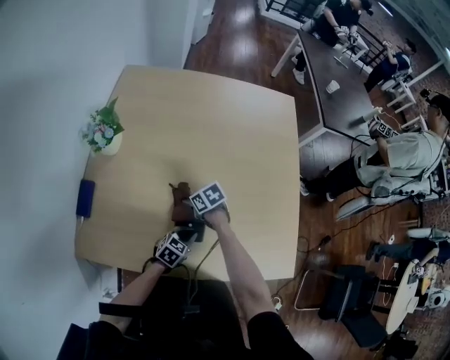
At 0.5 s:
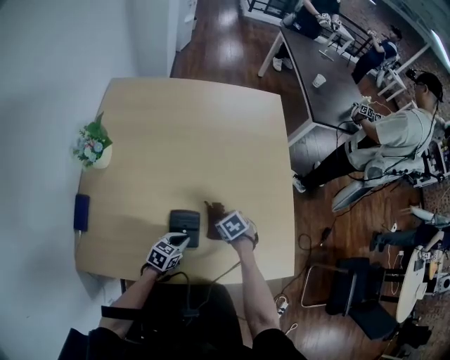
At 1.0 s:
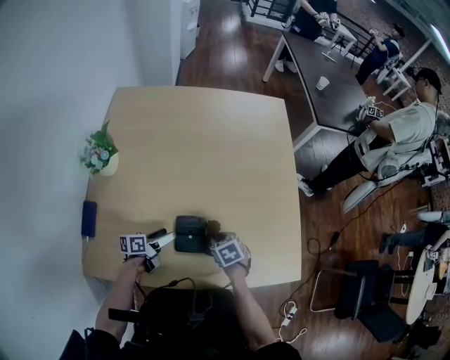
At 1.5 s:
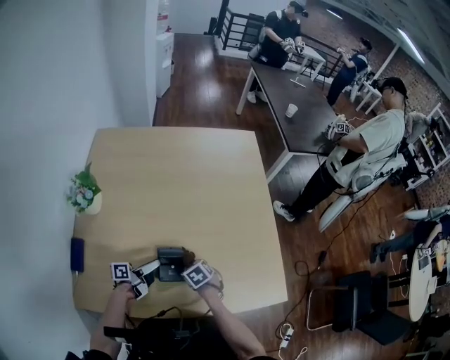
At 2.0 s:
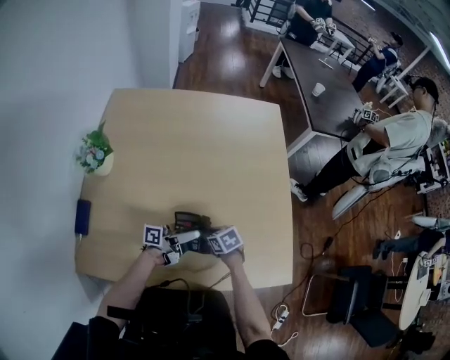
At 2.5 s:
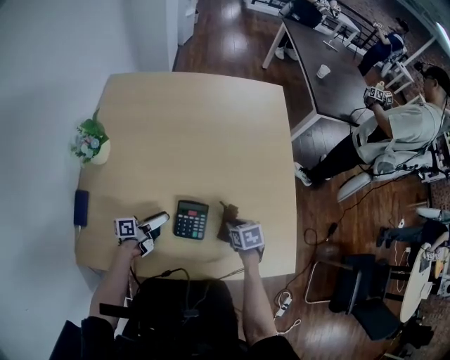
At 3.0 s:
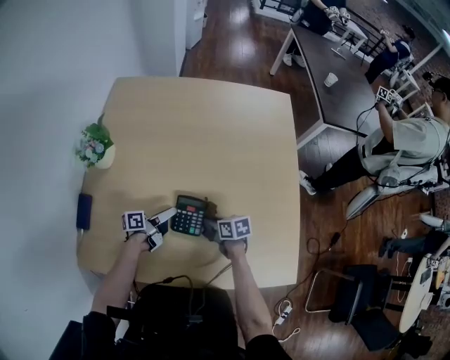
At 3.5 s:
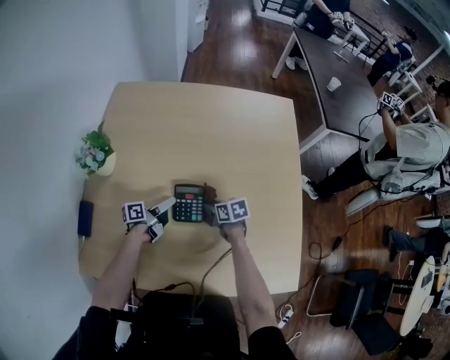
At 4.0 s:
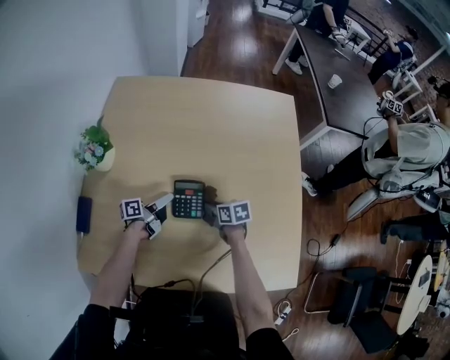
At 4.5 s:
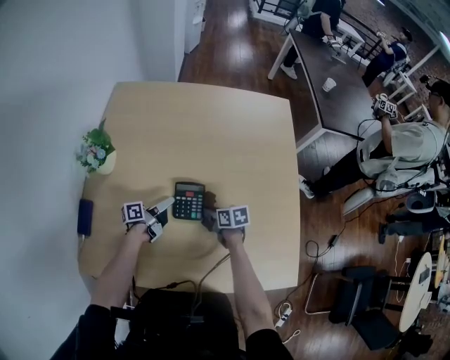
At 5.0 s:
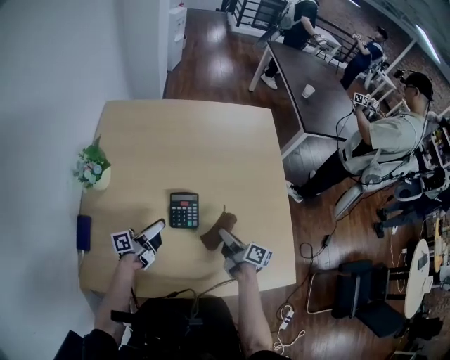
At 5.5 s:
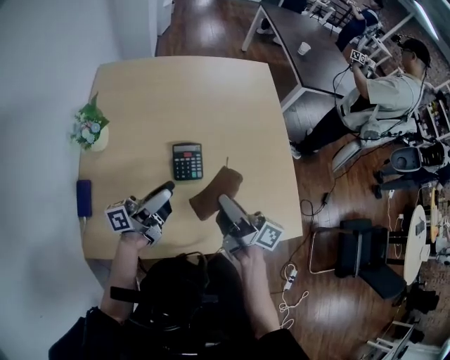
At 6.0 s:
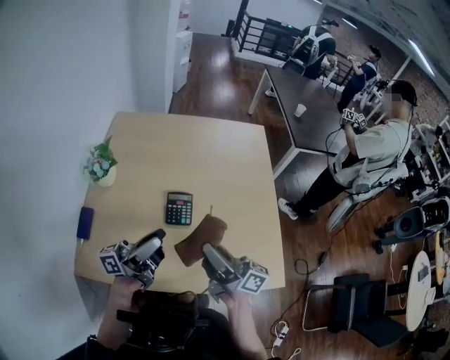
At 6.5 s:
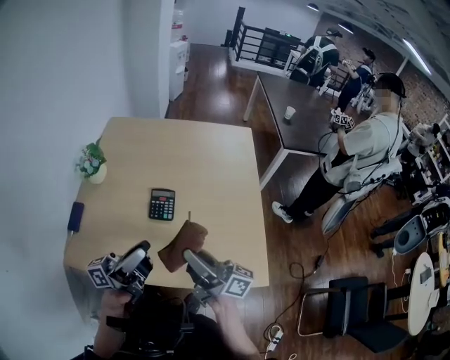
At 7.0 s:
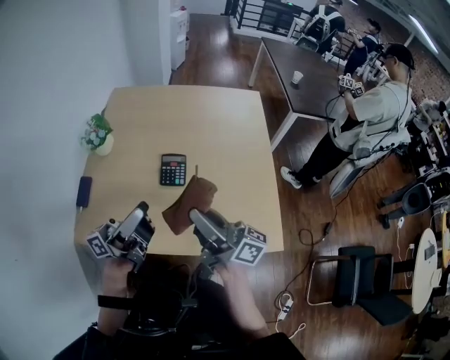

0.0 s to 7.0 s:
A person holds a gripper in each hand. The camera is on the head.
0.0 to 2.0 s: The right gripper ends up about 15 cm from where it was. Meanwhile the left gripper shifts some 10 cm upward, angles its fingers upward, by about 60 degrees, and opens its fingers.
2.0 to 3.5 s: The left gripper shifts by about 20 cm, and turns by approximately 30 degrees; the right gripper shifts by about 15 cm.
3.5 to 5.0 s: The left gripper travels upward and backward by roughly 15 cm. The right gripper heads upward, backward and to the right, covering roughly 15 cm, and points its fingers roughly 30 degrees further upward.
5.0 to 7.0 s: Both grippers travel together upward and backward, roughly 30 cm. The left gripper swivels approximately 30 degrees, and closes its fingers. The right gripper angles its fingers upward, by approximately 40 degrees.

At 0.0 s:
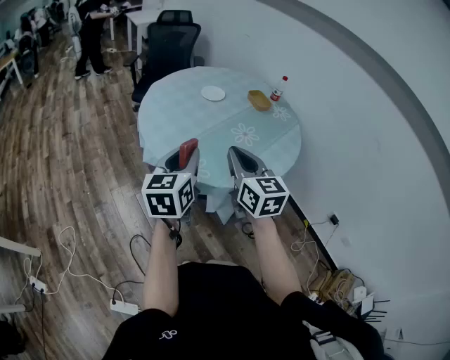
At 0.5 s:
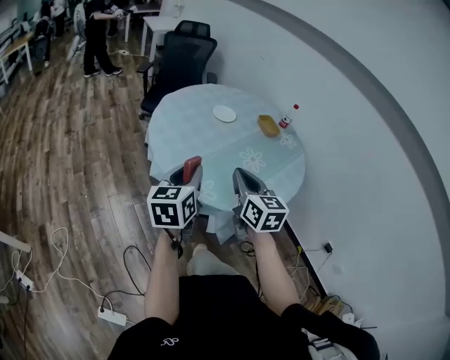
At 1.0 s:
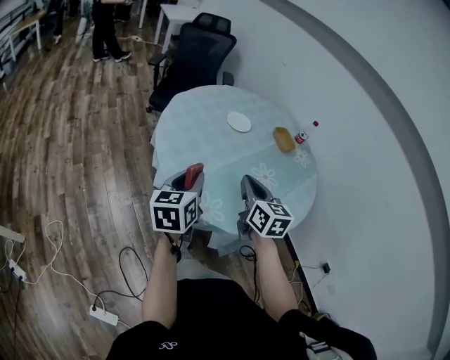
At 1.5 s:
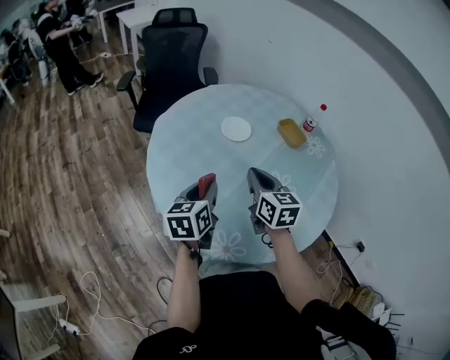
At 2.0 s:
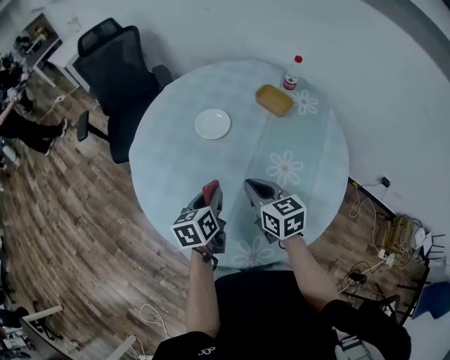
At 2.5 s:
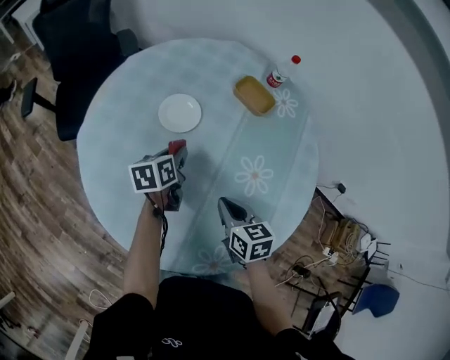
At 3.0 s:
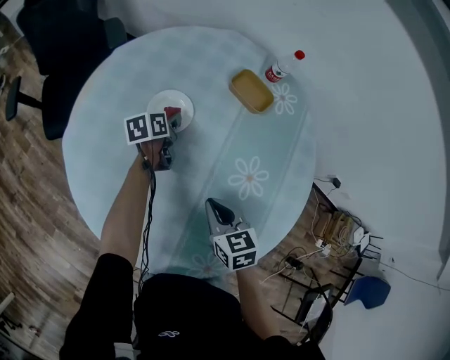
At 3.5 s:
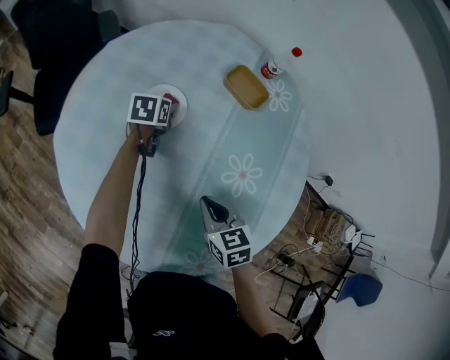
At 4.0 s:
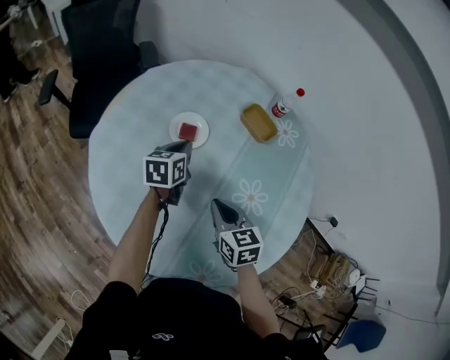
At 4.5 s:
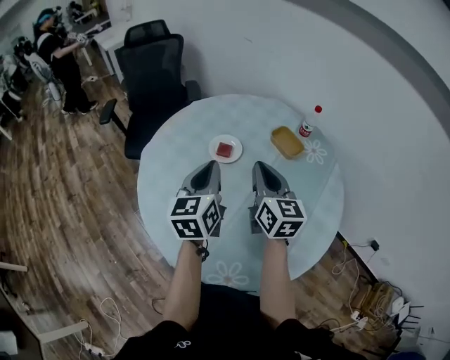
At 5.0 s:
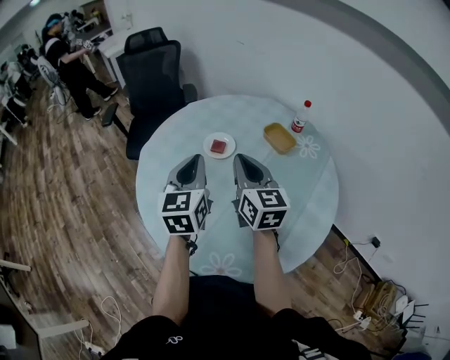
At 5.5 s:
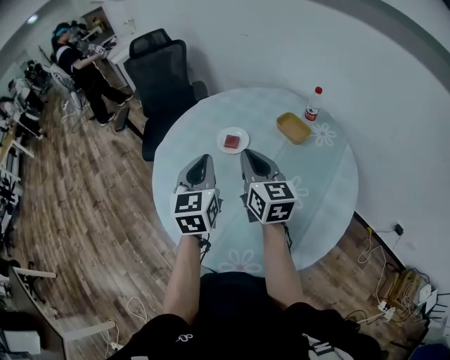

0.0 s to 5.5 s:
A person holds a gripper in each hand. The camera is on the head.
0.0 to 2.0 s: Both grippers move forward and downward, approximately 40 cm. The left gripper swivels approximately 40 degrees; the right gripper turns by about 30 degrees.
2.0 to 3.5 s: The left gripper heads forward and downward, covering some 40 cm, swivels about 30 degrees, and opens. The right gripper moves downward and forward, about 10 cm, and changes its angle by about 20 degrees.
3.5 to 5.5 s: Both grippers move upward, approximately 25 cm. The right gripper tilts its fingers roughly 40 degrees upward; the left gripper tips its fingers upward by some 40 degrees, and closes its fingers.

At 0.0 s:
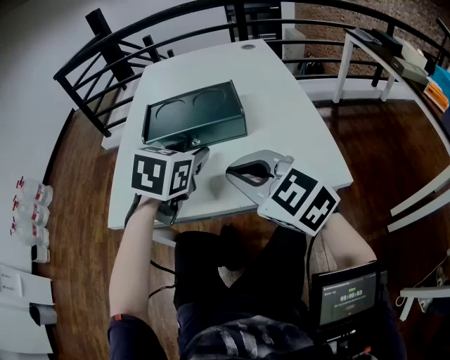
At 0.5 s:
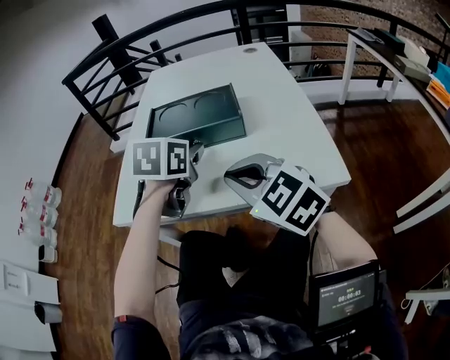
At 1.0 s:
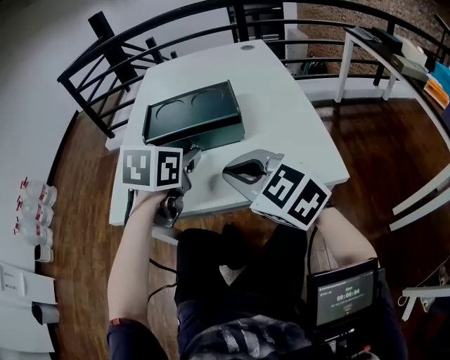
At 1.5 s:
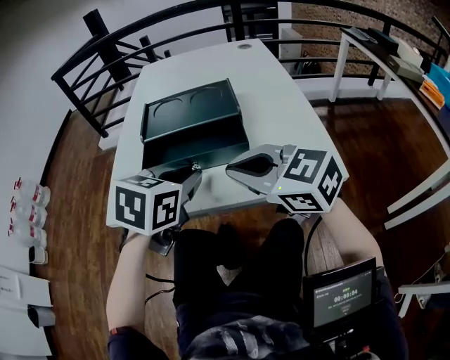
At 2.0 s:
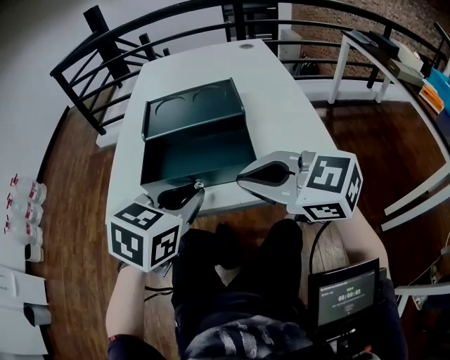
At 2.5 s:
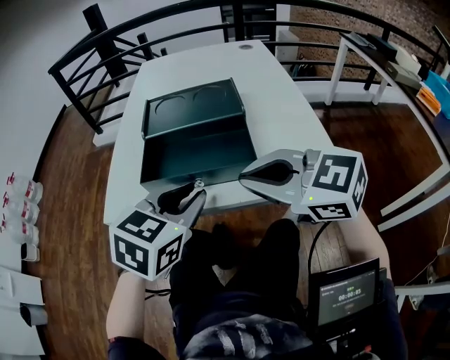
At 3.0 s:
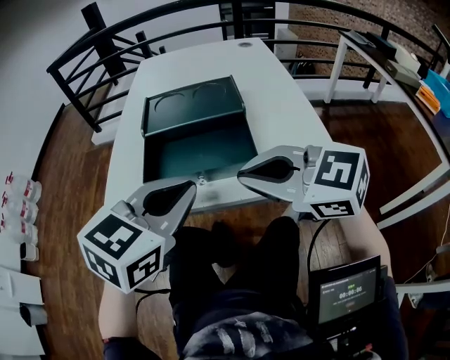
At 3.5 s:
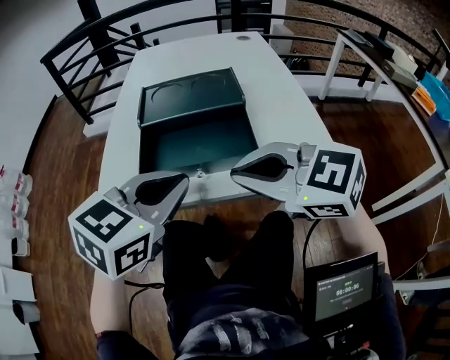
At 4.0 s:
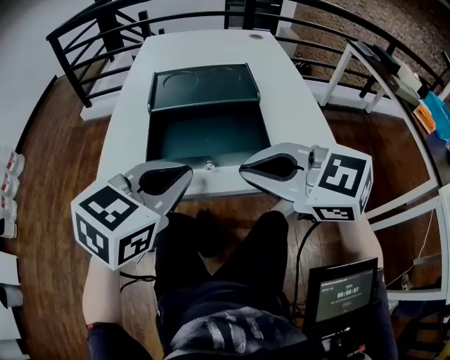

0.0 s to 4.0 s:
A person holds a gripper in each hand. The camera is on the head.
0.0 to 2.0 s: The left gripper shifts about 10 cm backward, and closes its fingers.
2.0 to 4.0 s: The grippers move only a little.

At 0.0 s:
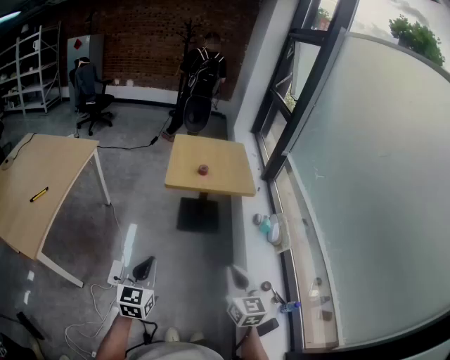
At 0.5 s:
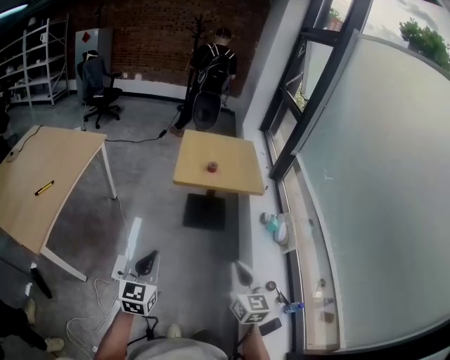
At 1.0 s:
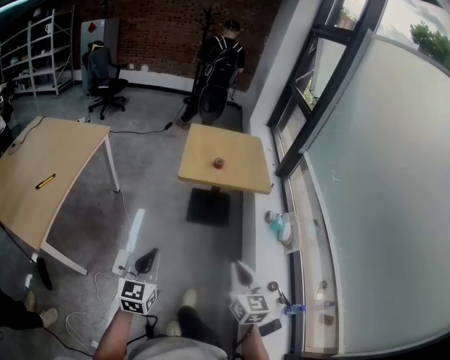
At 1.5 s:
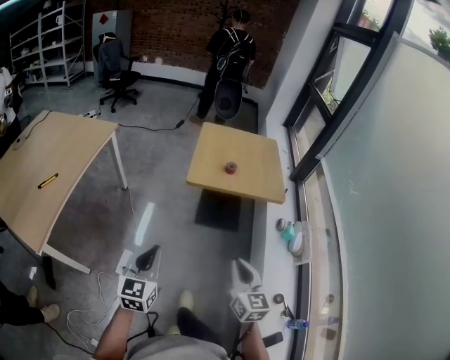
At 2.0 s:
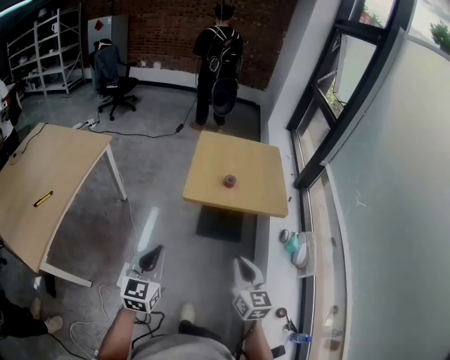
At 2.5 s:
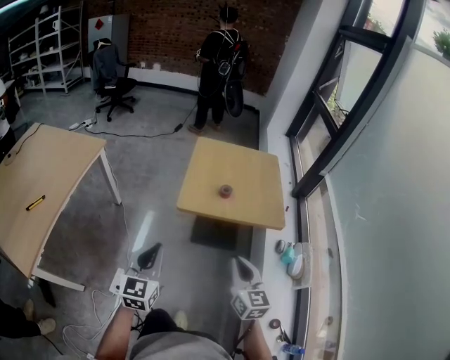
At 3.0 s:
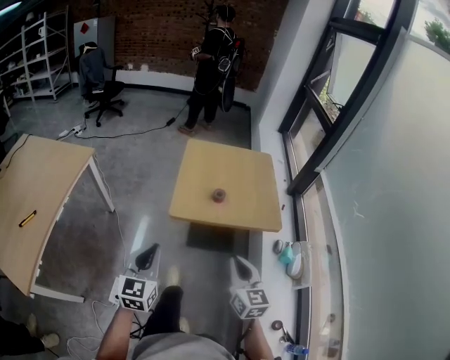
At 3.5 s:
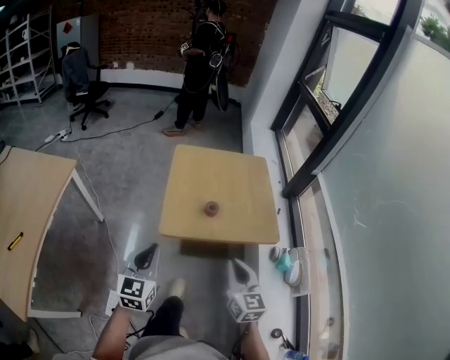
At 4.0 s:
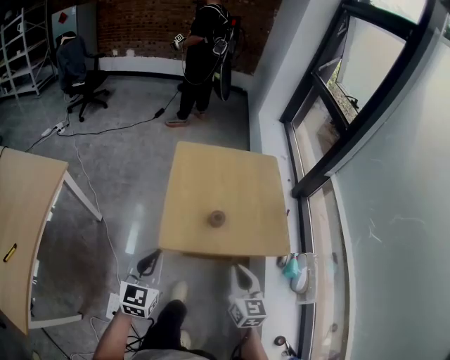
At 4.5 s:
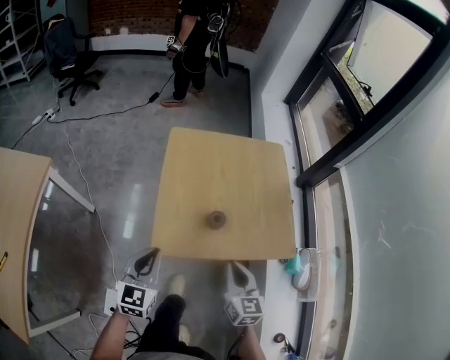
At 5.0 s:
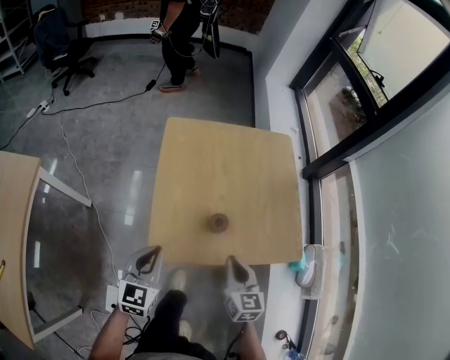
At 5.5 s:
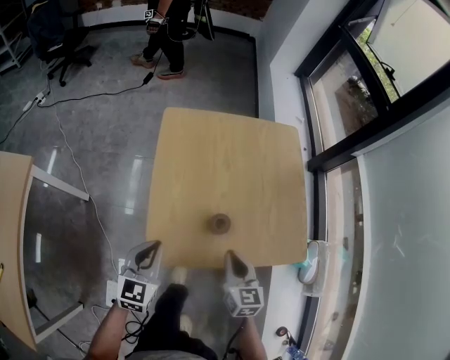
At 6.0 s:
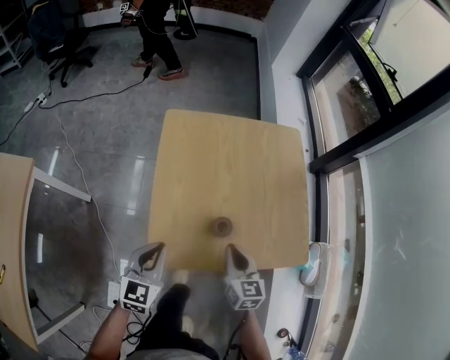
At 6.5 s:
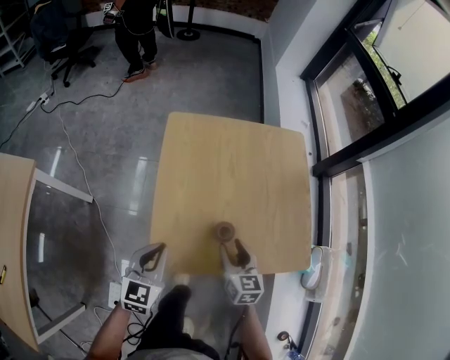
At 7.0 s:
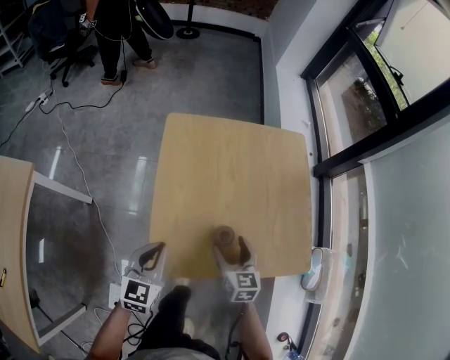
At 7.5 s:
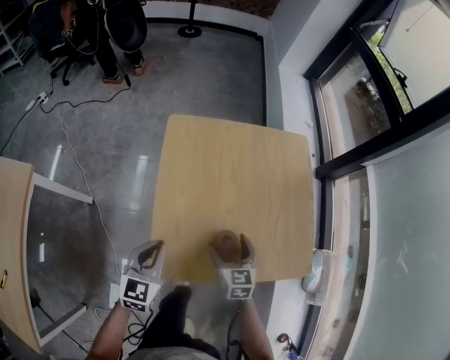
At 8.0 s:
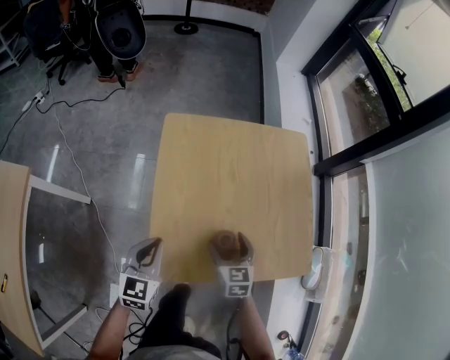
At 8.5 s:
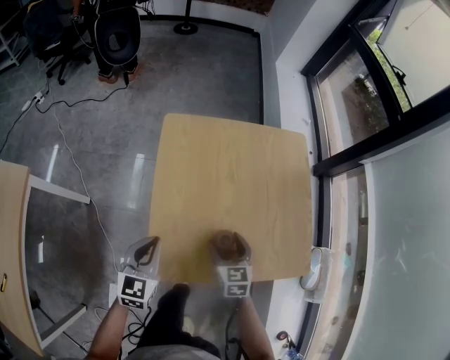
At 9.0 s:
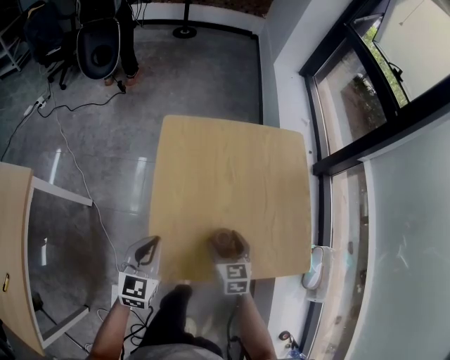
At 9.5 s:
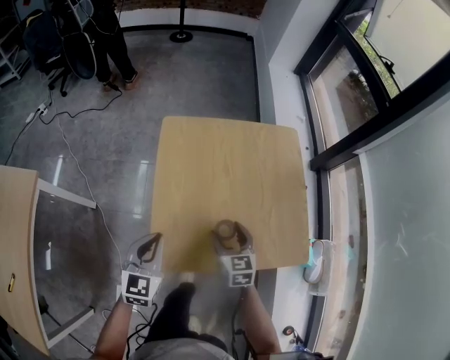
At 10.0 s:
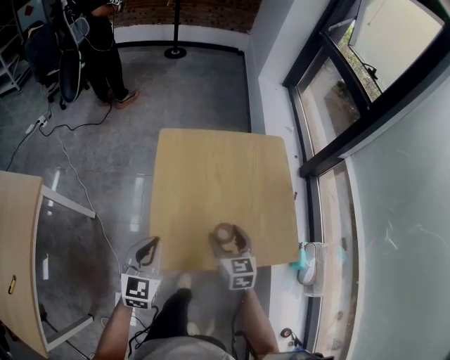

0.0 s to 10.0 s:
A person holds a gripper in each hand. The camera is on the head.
0.0 to 2.0 s: The grippers both shift forward by some 25 cm.
2.0 to 4.0 s: Both grippers move forward, some 30 cm.
4.0 to 6.0 s: The two grippers go about 20 cm forward and downward.
6.0 to 8.0 s: The left gripper heads forward, covering some 5 cm; the right gripper shifts approximately 10 cm forward and downward, and opens its fingers.
8.0 to 10.0 s: Both grippers travel together upward, some 10 cm.
